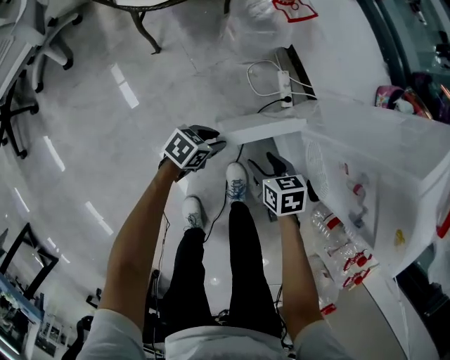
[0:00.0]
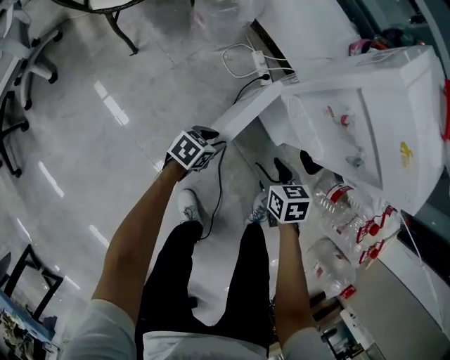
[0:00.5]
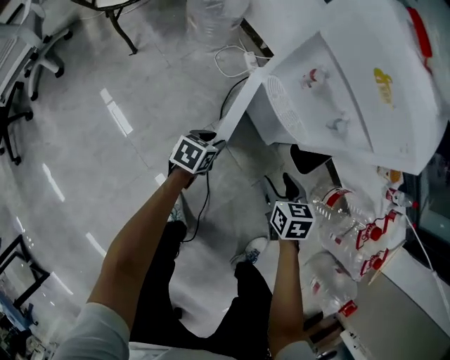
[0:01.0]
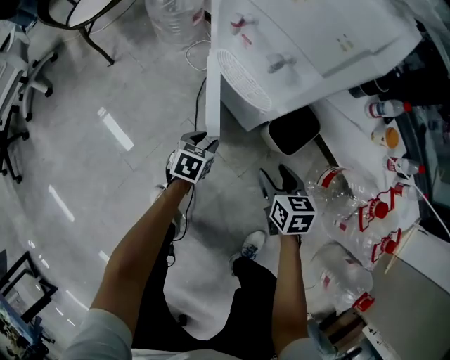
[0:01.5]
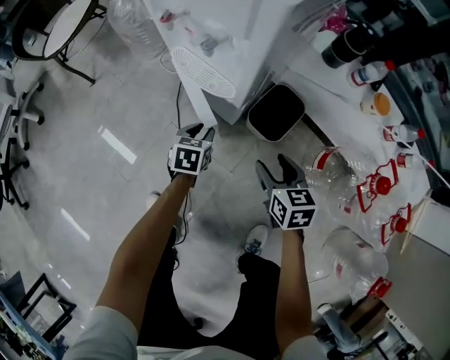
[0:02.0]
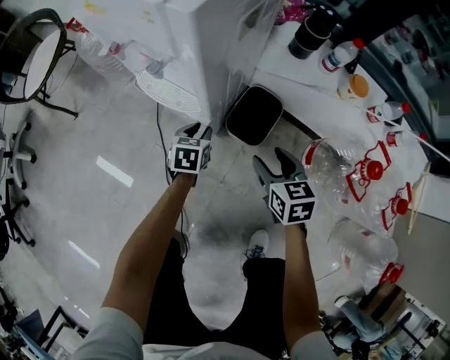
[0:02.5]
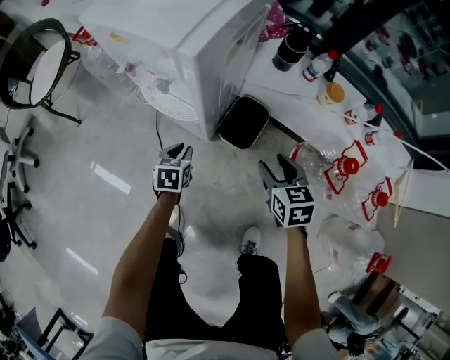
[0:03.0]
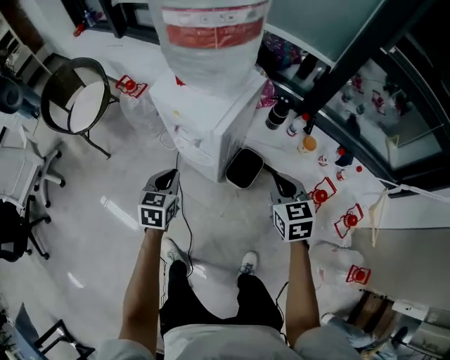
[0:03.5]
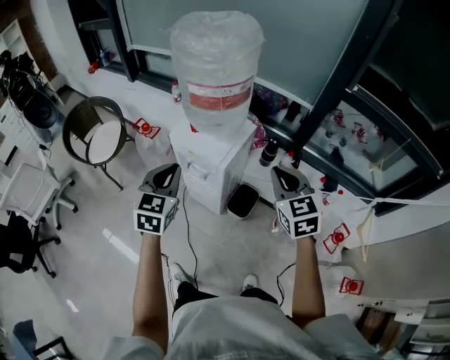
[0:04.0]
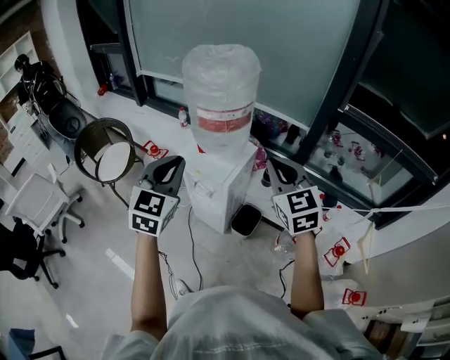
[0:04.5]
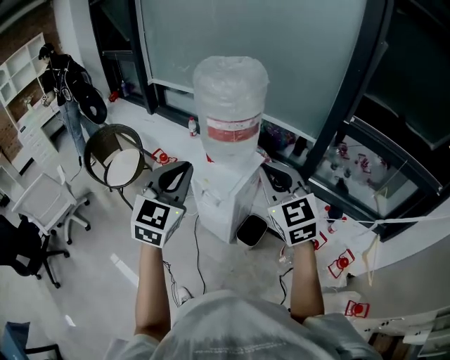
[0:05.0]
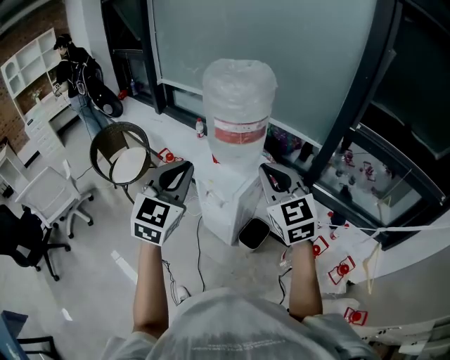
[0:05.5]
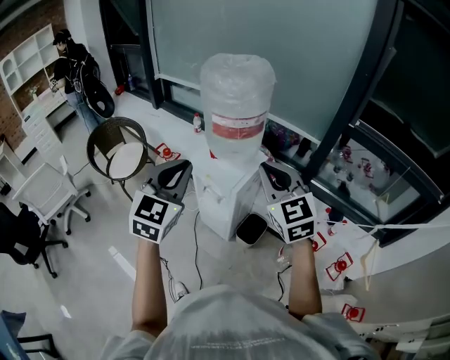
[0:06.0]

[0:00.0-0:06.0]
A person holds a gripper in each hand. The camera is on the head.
0:00.0 to 0:02.0: The right gripper moves approximately 50 cm, and turns by approximately 30 degrees. The left gripper ends up approximately 40 cm from where it was, and swivels some 30 degrees.
0:02.0 to 0:04.0: The grippers both shift upward by some 60 cm. The left gripper tips its fingers upward by approximately 30 degrees, and closes up. Meanwhile the right gripper swivels roughly 30 degrees, and closes its fingers.
0:04.0 to 0:06.0: The left gripper is displaced upward by some 15 cm, while the right gripper is displaced upward and to the left by roughly 15 cm, and changes its angle by roughly 20 degrees.

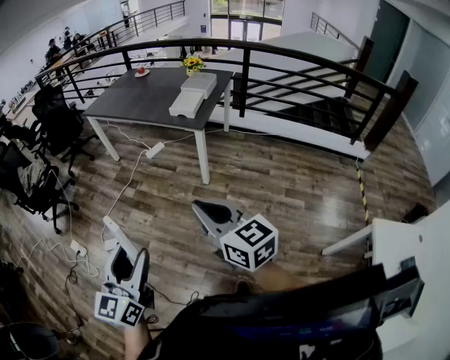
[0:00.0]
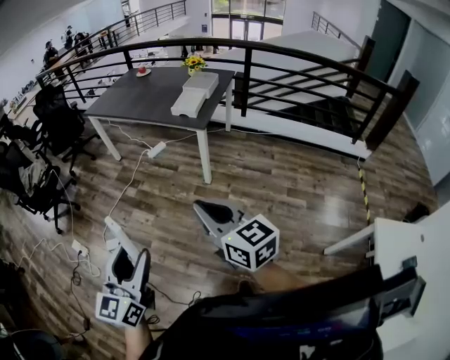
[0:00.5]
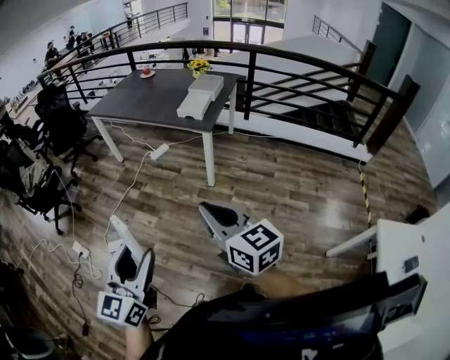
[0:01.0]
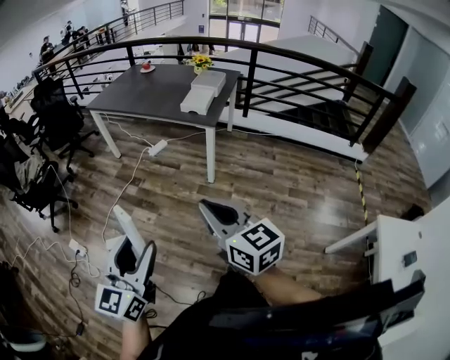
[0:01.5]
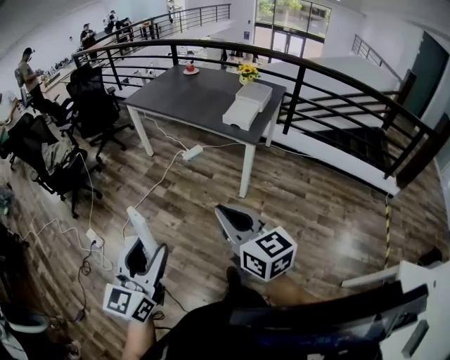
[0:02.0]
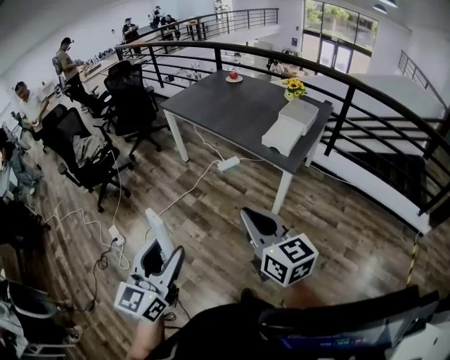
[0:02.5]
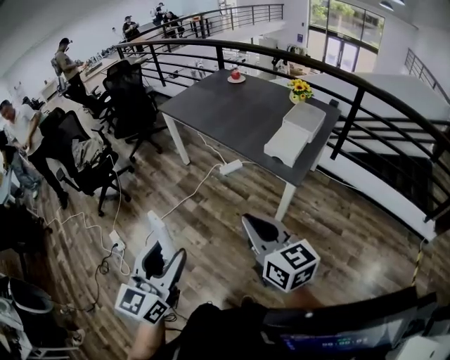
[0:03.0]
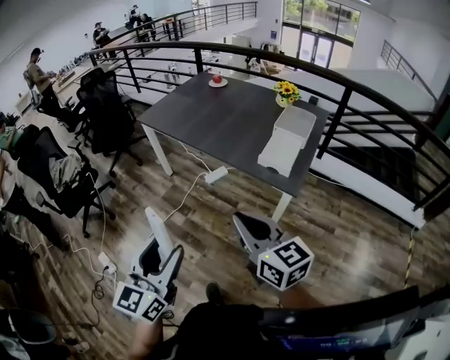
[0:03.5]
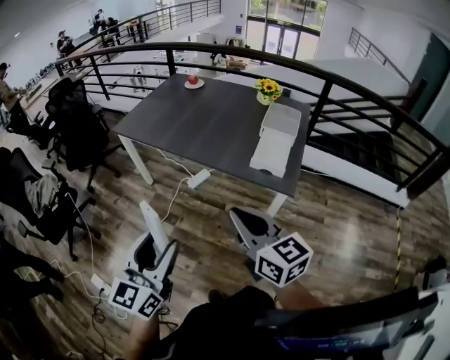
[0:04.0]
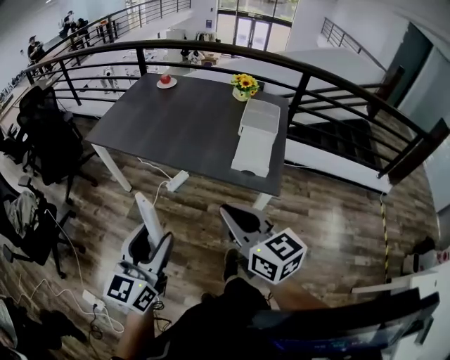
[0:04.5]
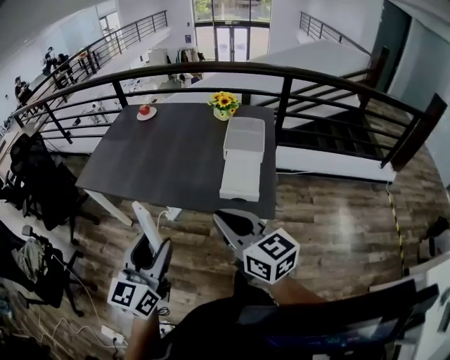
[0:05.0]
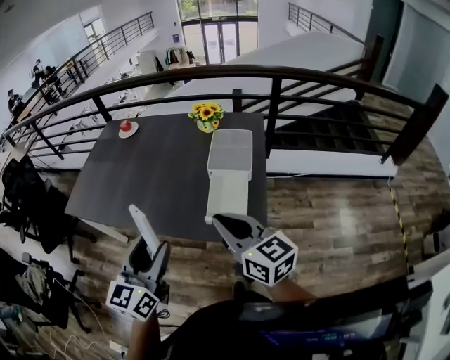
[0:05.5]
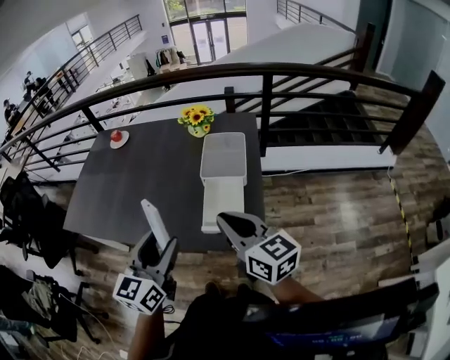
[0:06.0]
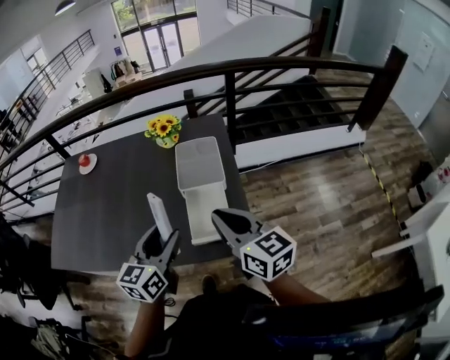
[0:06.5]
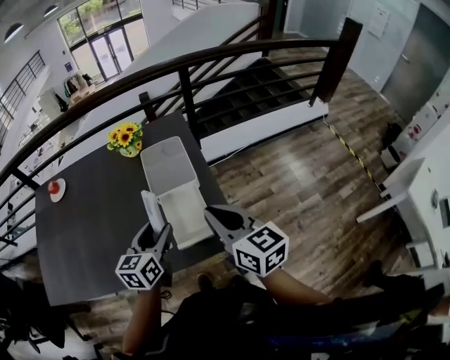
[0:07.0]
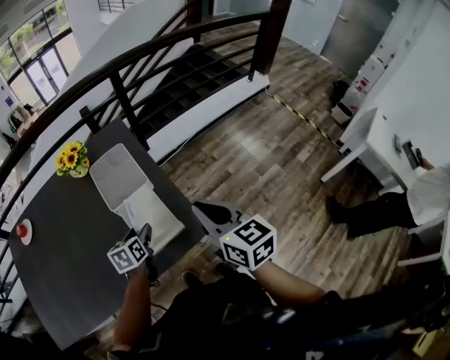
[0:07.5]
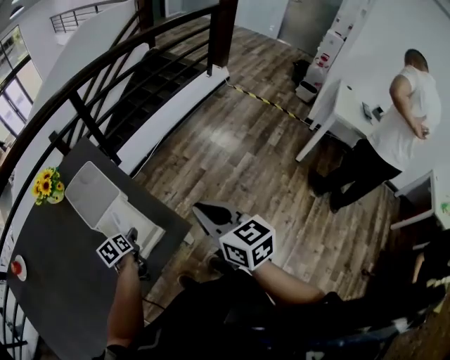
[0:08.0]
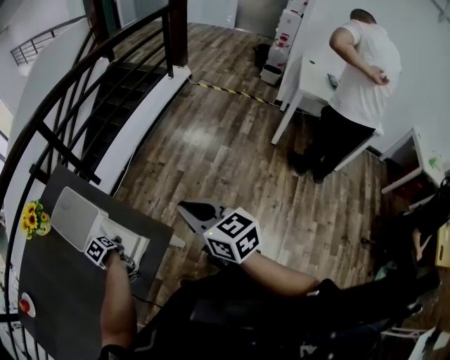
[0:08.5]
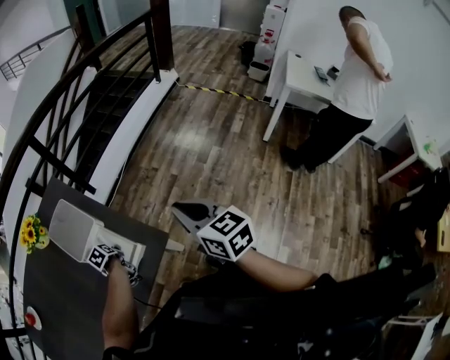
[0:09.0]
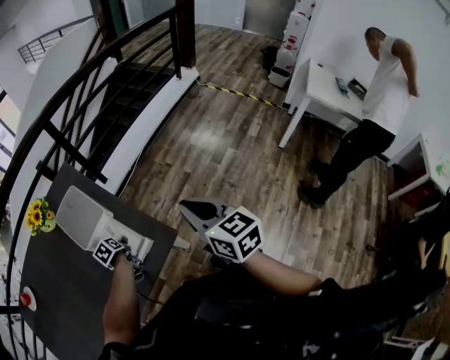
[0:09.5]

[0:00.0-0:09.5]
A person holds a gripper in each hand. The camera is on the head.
0:00.0 to 0:02.0: Both grippers travel together to the left and forward, approximately 15 cm.
0:02.0 to 0:04.0: The pair of grippers is taken forward, about 40 cm.
0:04.0 to 0:05.5: Both grippers move forward and to the right, approximately 35 cm.
0:05.5 to 0:07.5: The right gripper changes place by some 15 cm, and changes its angle by about 50 degrees, while the left gripper moves some 35 cm, and points its fingers about 40 degrees further downward.
0:07.5 to 0:09.5: The right gripper shifts about 10 cm to the right; the left gripper moves downward and forward, some 10 cm, and swivels roughly 20 degrees.

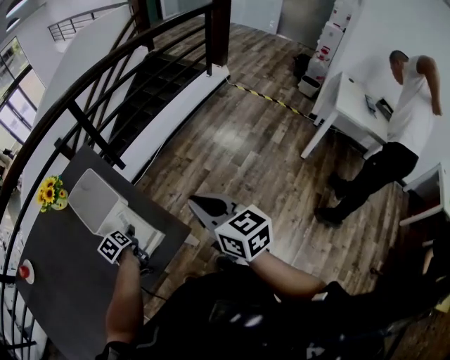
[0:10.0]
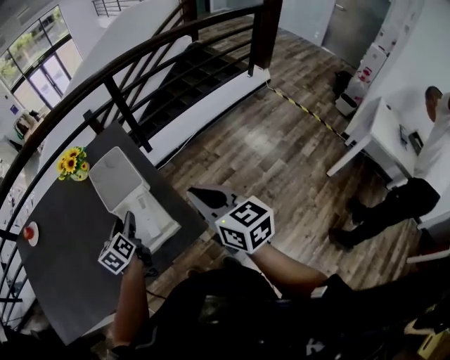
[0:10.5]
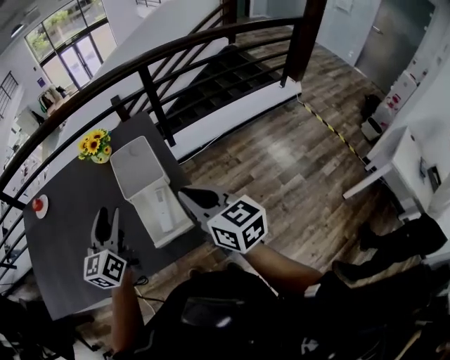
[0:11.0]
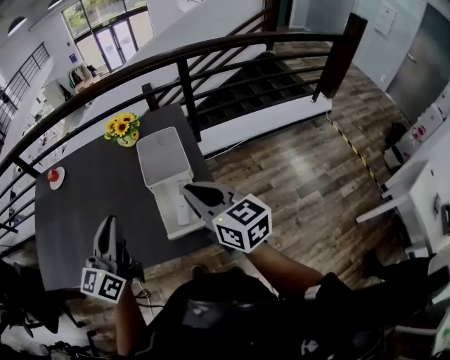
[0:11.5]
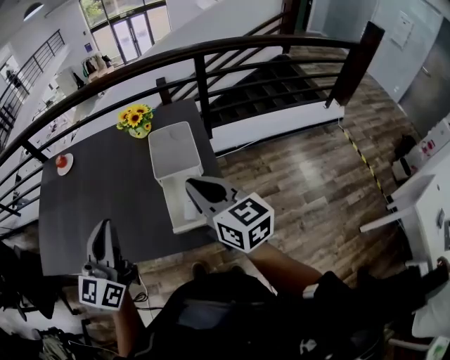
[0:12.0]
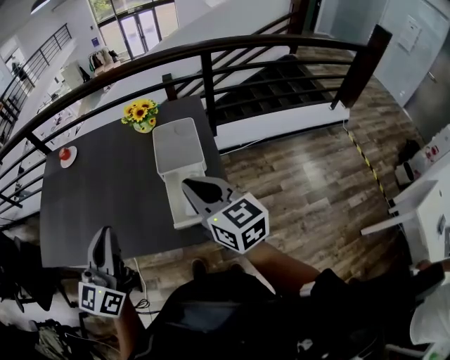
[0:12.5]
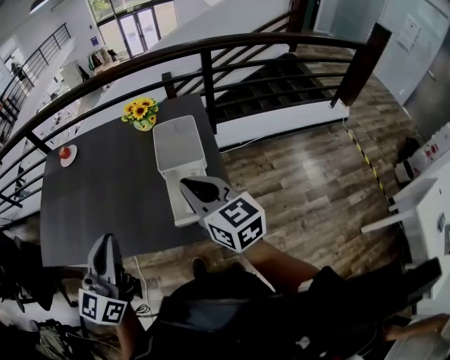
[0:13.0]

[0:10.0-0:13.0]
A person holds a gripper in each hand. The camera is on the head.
0:10.0 to 0:11.5: The left gripper moves upward and backward, about 35 cm, tilts its fingers some 60 degrees upward, and closes up, while the right gripper moves to the left and forward, some 20 cm, and changes its angle by approximately 40 degrees.
0:11.5 to 0:13.0: The right gripper heads to the left, covering some 5 cm; the left gripper heads backward, covering roughly 10 cm.

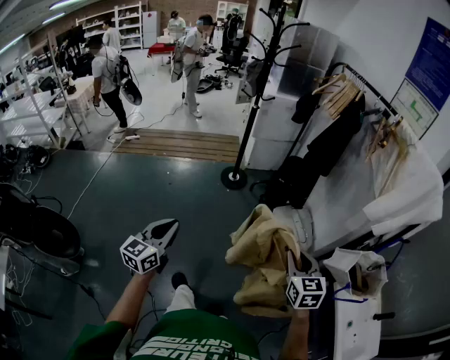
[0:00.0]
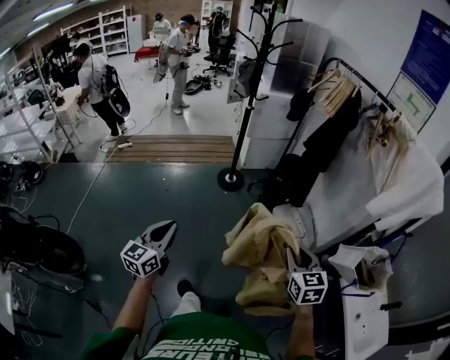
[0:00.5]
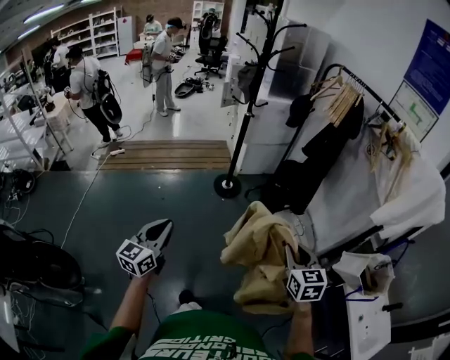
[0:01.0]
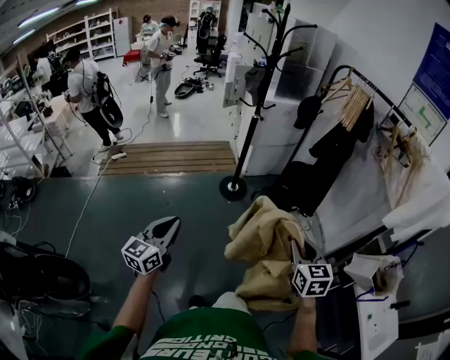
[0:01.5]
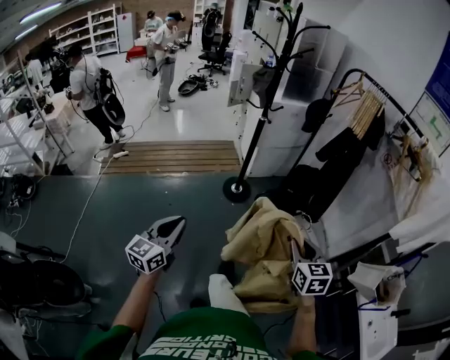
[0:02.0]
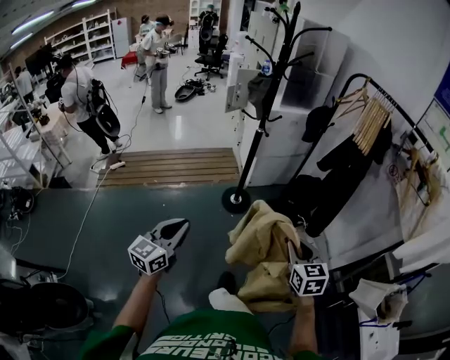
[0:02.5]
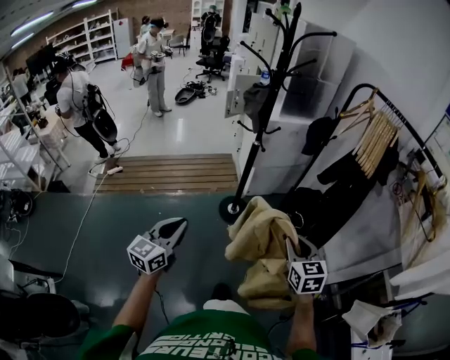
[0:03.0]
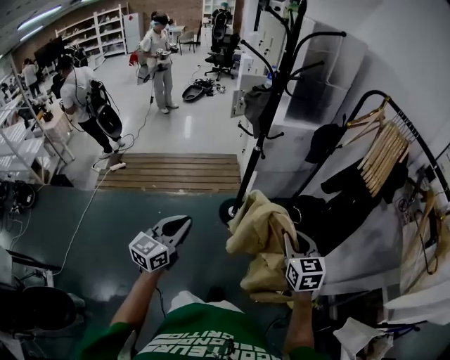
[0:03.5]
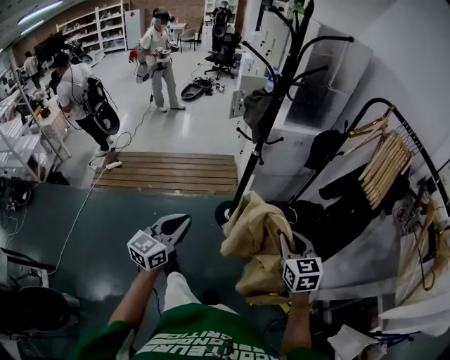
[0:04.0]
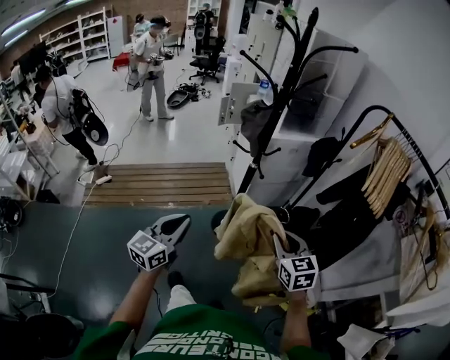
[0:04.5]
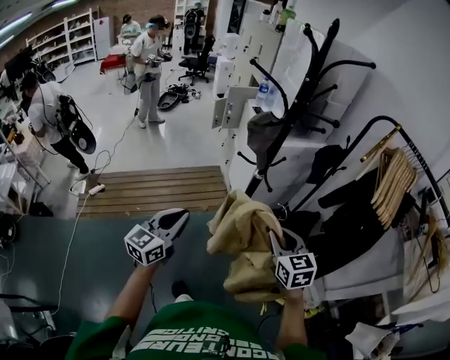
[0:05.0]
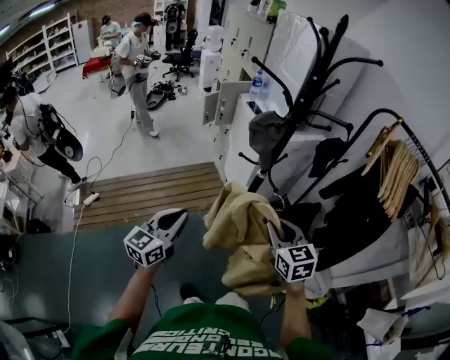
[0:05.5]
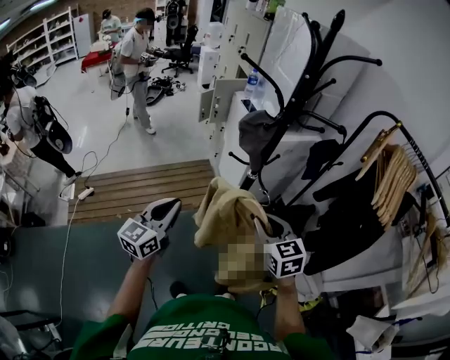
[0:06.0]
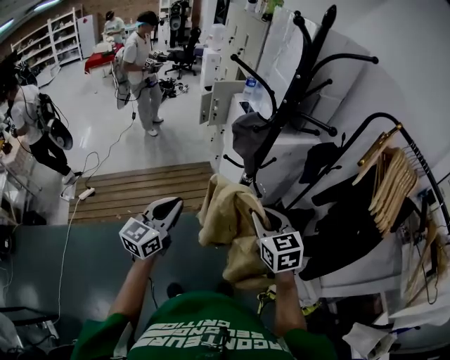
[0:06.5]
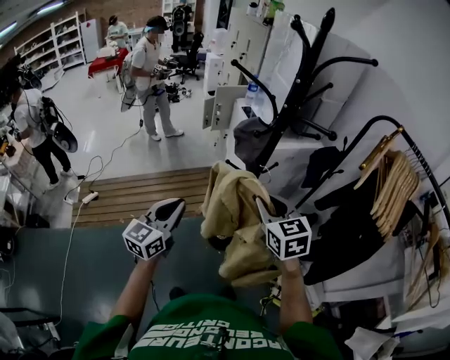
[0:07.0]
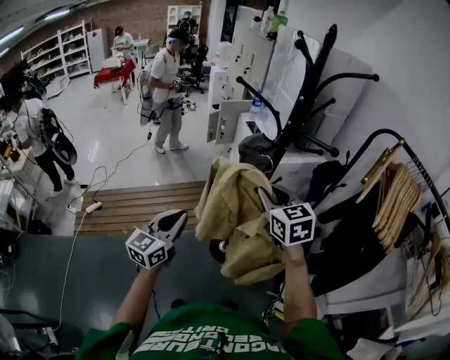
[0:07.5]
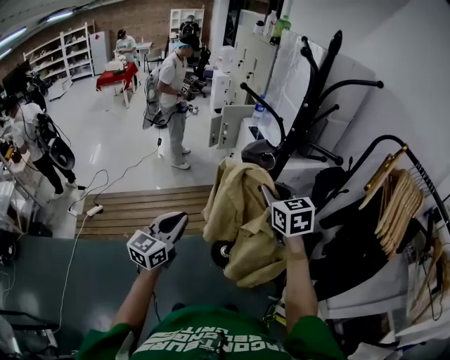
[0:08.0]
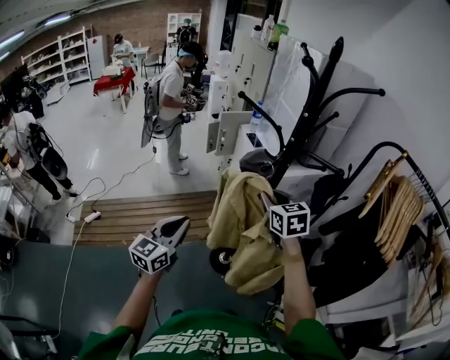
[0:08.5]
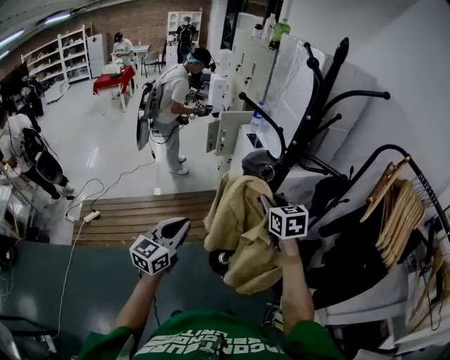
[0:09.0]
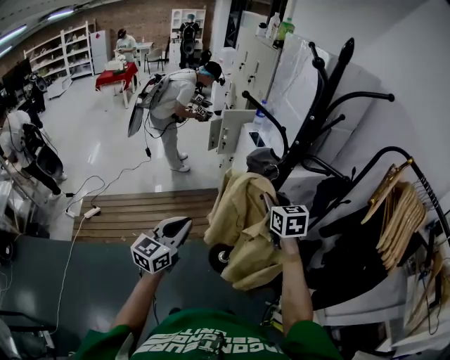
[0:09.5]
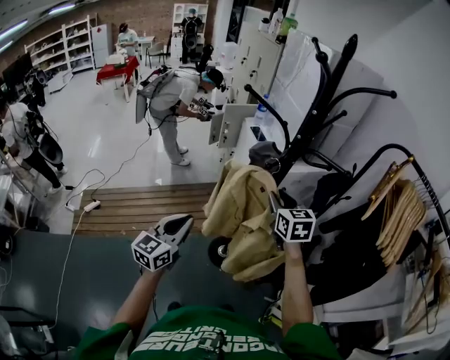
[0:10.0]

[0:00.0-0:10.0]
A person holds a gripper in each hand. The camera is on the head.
0:00.0 to 0:02.0: The left gripper goes some 25 cm forward and to the left. Meanwhile the right gripper heads to the left and forward, covering about 25 cm.
0:02.0 to 0:04.0: The two grippers go approximately 35 cm forward.
0:04.0 to 0:06.0: The left gripper shifts approximately 30 cm forward and to the left, while the right gripper moves to the left and forward, roughly 25 cm.
0:06.0 to 0:08.0: The right gripper moves forward and upward, roughly 20 cm.
0:08.0 to 0:10.0: The right gripper shifts by approximately 10 cm.
